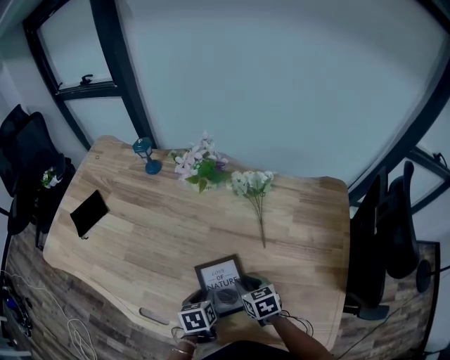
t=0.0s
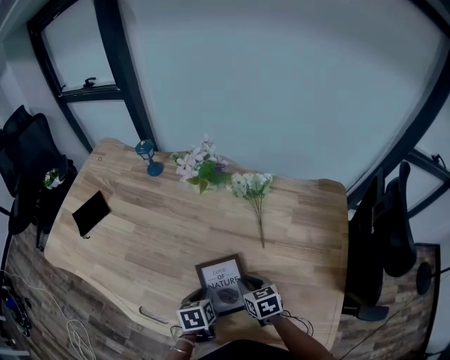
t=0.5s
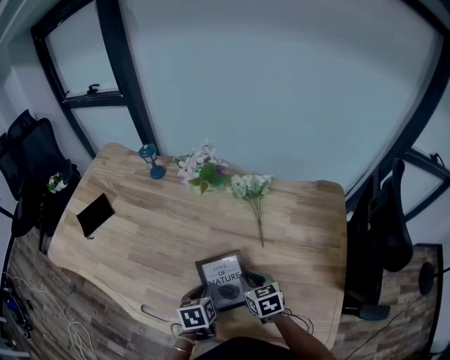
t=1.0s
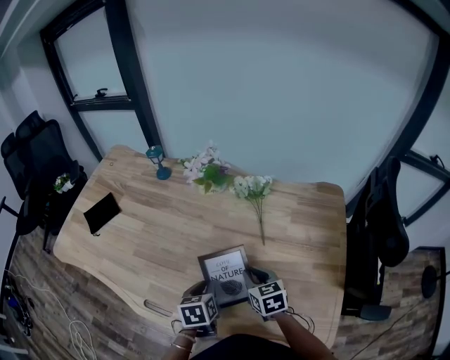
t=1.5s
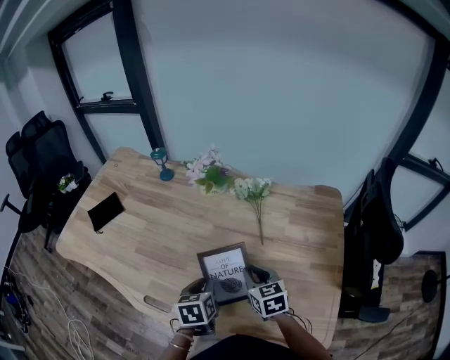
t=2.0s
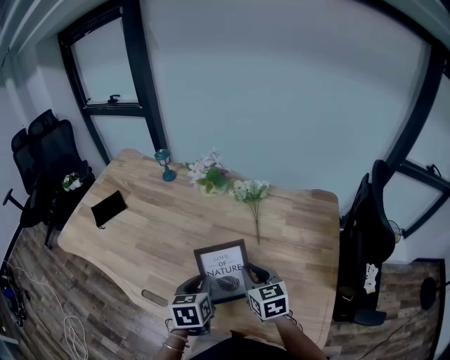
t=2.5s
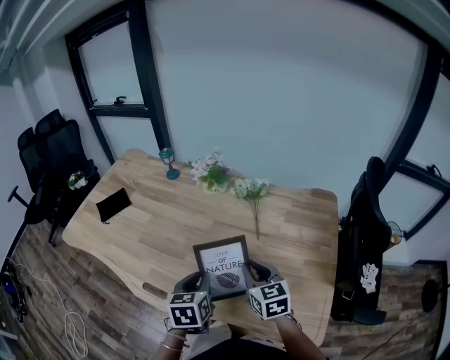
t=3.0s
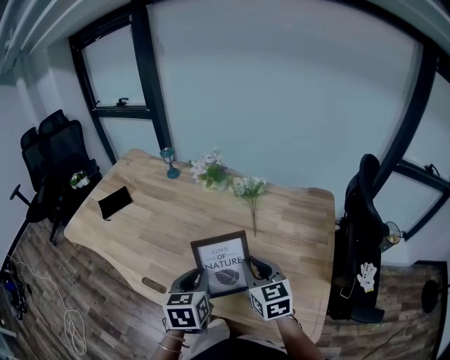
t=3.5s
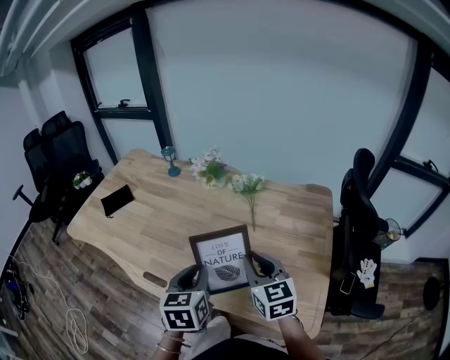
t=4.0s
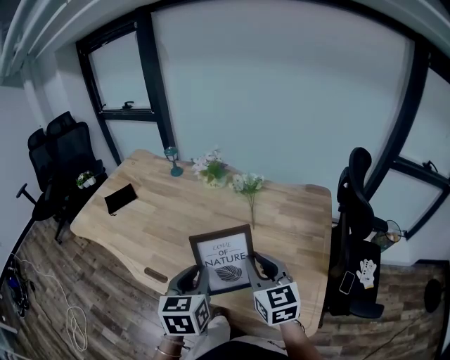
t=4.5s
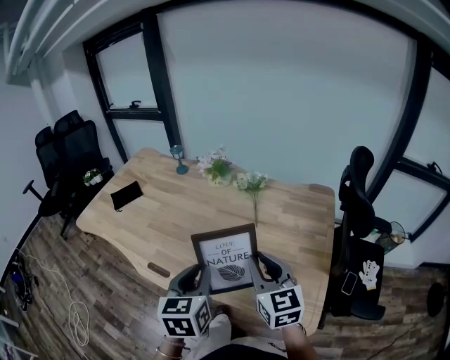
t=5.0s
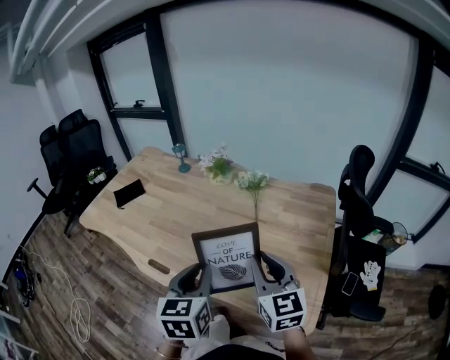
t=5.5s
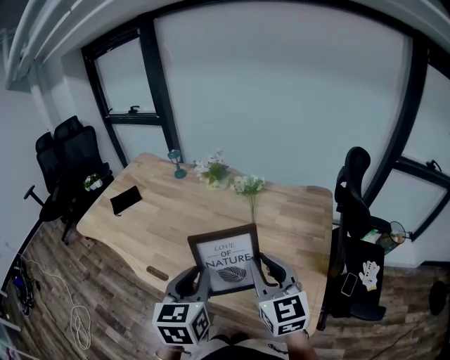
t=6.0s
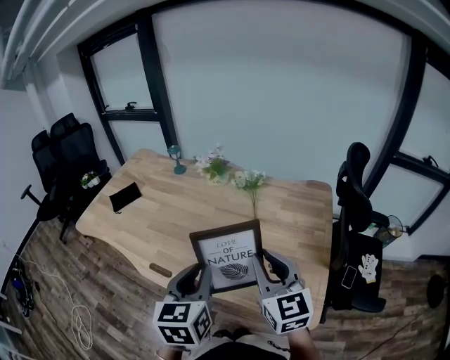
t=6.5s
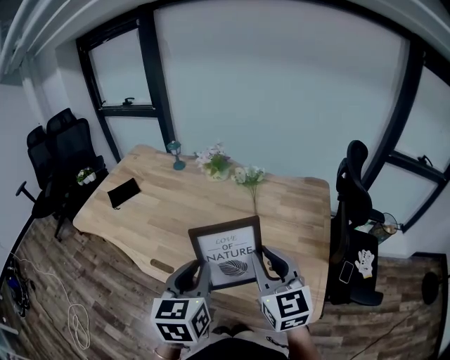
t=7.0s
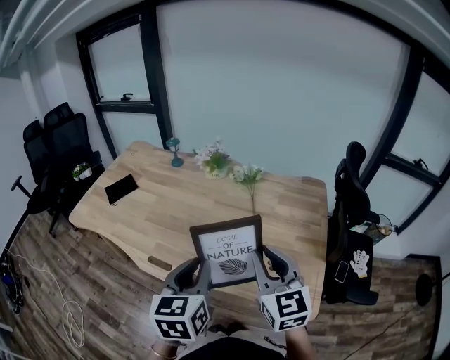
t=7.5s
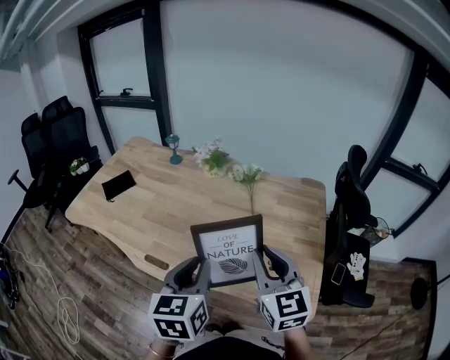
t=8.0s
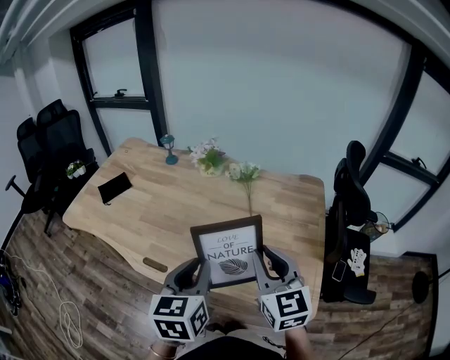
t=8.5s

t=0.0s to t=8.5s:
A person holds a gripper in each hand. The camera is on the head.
t=0.0s to t=2.0s: Both grippers move upward, roughly 10 cm.
t=2.0s to t=4.0s: Both grippers travel together upward and backward, some 15 cm.
t=4.0s to t=6.5s: The two grippers go approximately 10 cm upward and backward.
t=6.5s to t=8.5s: The grippers stay close to where they were, moving slightly.

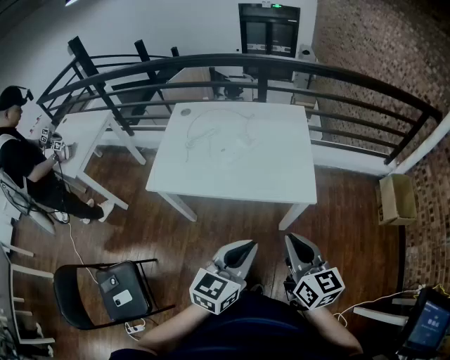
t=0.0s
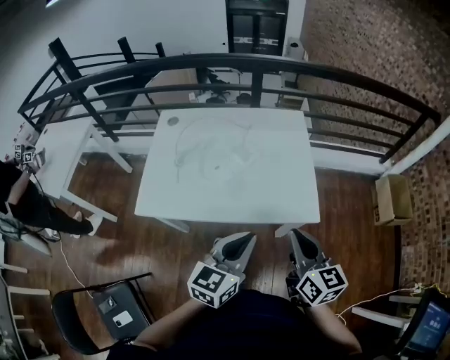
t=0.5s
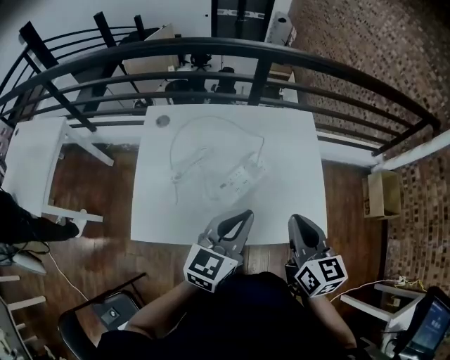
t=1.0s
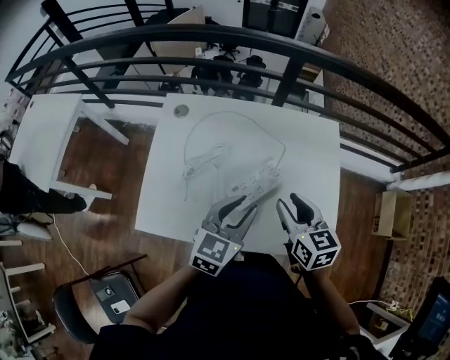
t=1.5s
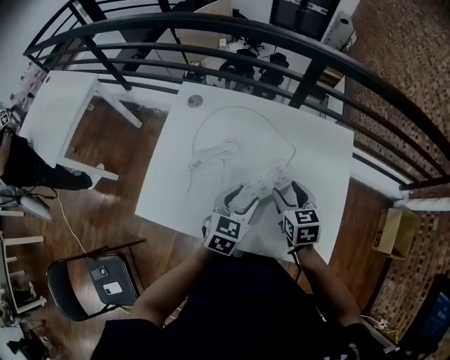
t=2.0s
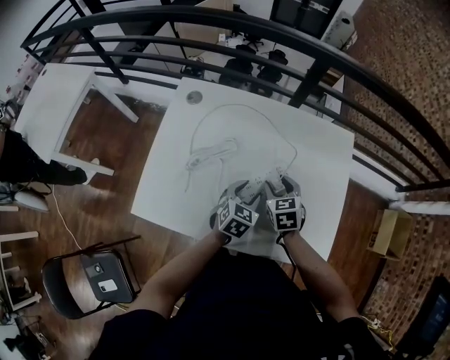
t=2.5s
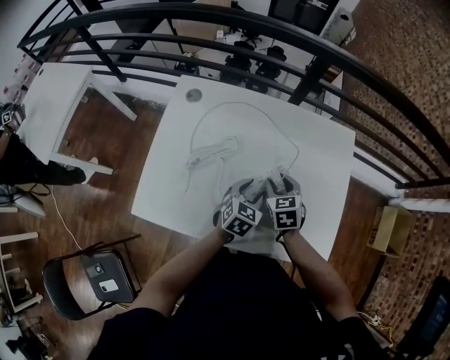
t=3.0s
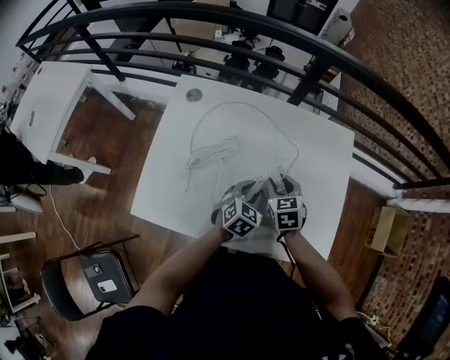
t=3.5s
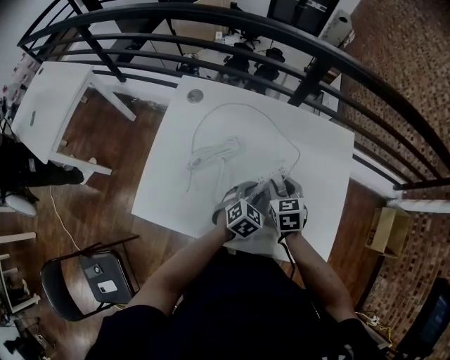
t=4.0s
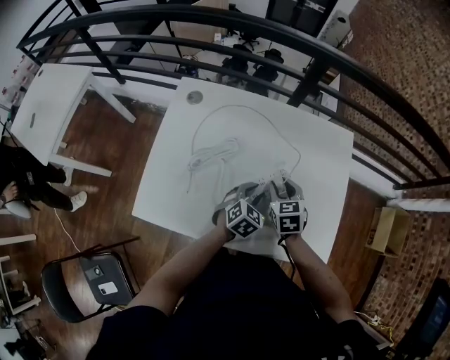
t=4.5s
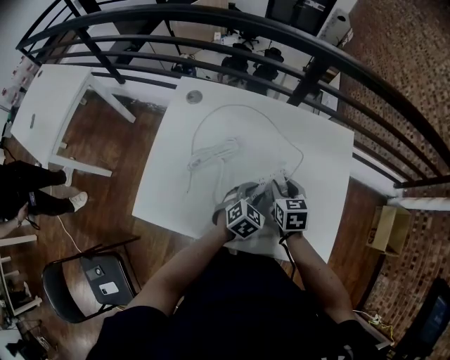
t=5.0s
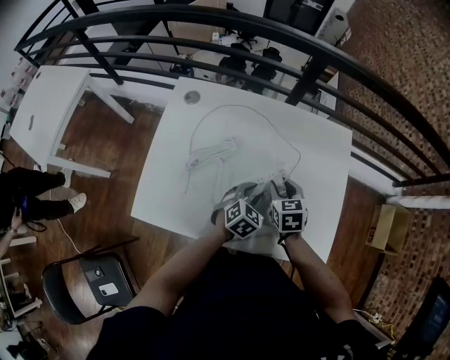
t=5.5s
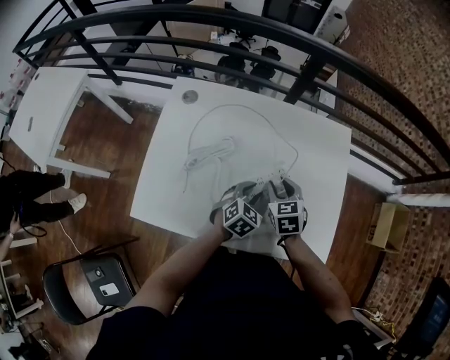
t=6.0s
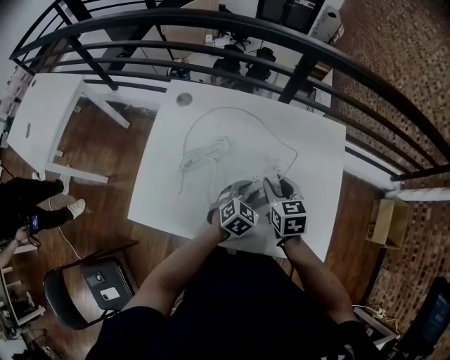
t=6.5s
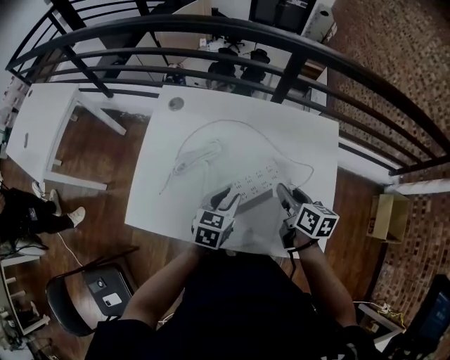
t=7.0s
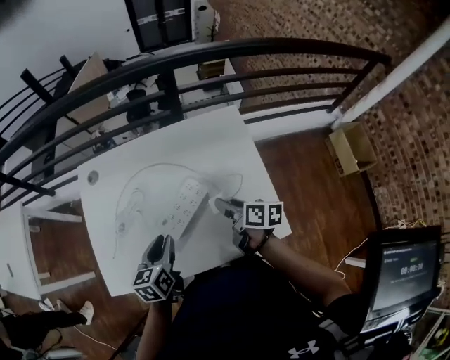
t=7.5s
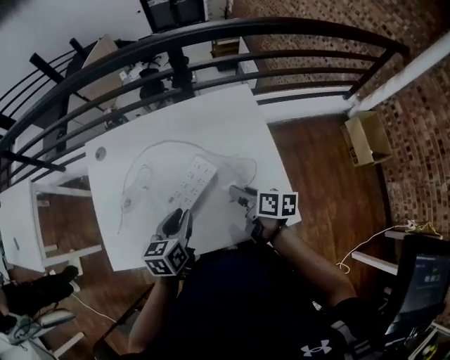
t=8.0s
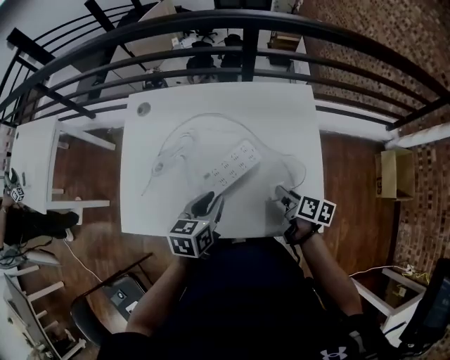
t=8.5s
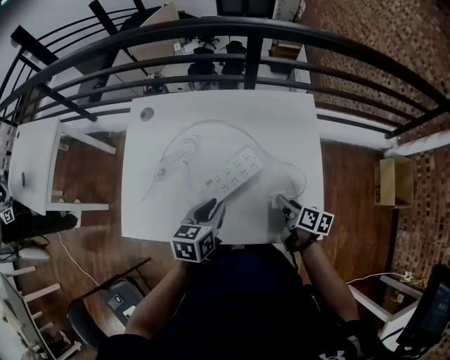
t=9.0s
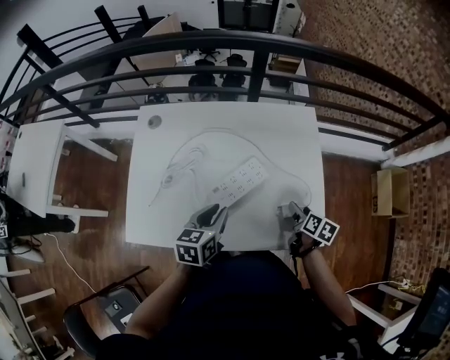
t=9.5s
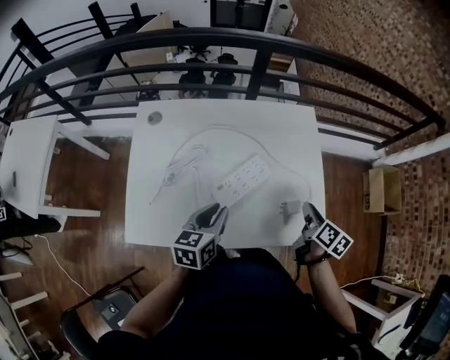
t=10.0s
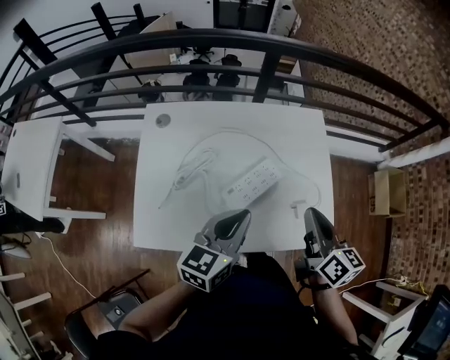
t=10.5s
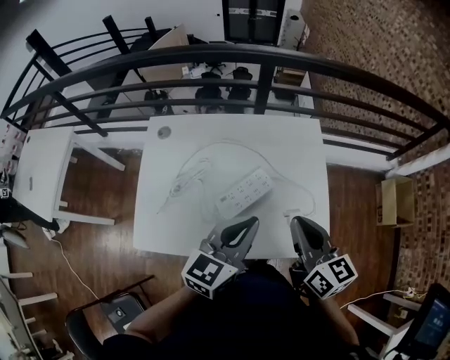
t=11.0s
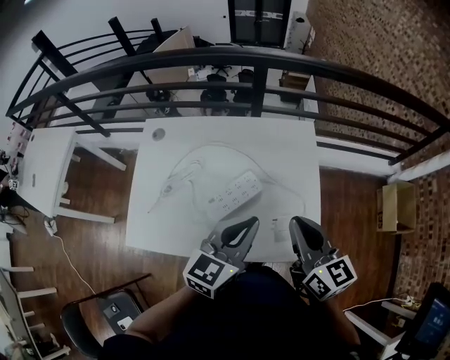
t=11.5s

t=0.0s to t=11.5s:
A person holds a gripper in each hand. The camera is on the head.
t=0.0s to t=2.0s: The two grippers go roughly 40 cm forward and downward. The right gripper turns by approximately 30 degrees, and opens its fingers. The left gripper turns by approximately 20 degrees, and opens up.
t=2.0s to t=4.0s: The right gripper shifts roughly 5 cm downward, and closes up; the left gripper travels downward by approximately 10 cm, turns by roughly 20 degrees, and closes.
t=4.0s to t=6.0s: The grippers stay close to where they were, moving slightly.
t=6.0s to t=7.5s: The right gripper heads to the right, covering some 10 cm, and rotates around the line of its fingers by roughly 60 degrees, clockwise from behind. Meanwhile the left gripper is displaced upward and to the left by some 10 cm, and swivels roughly 40 degrees.
t=7.5s to t=9.5s: The right gripper is displaced to the right, downward and backward by some 15 cm, rotates approximately 30 degrees, and opens its fingers.
t=9.5s to t=11.5s: The left gripper travels upward and to the right by roughly 20 cm, swivels roughly 30 degrees, and closes its fingers, while the right gripper travels upward by about 30 cm, tips its fingers upward by some 40 degrees, and closes its fingers.

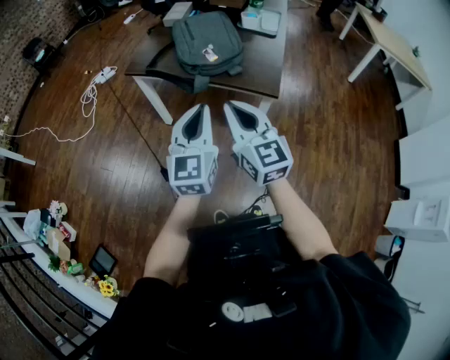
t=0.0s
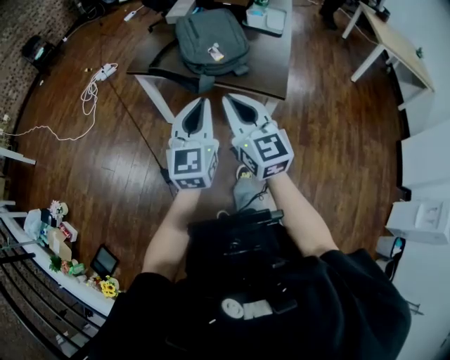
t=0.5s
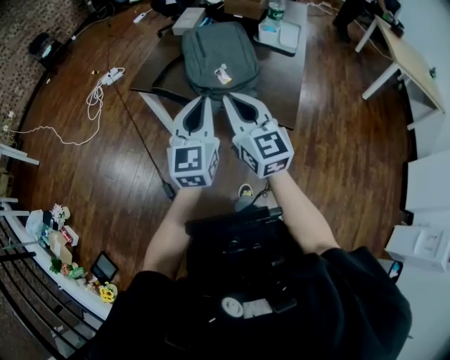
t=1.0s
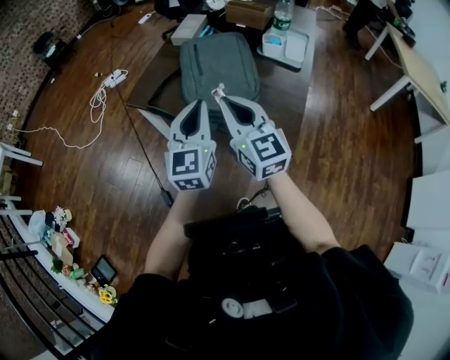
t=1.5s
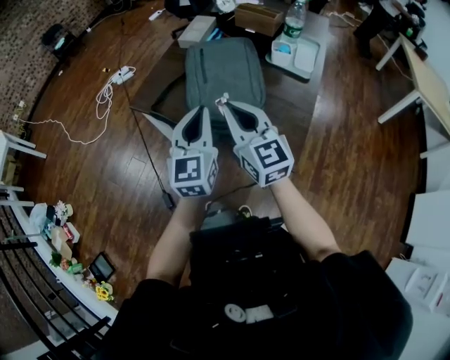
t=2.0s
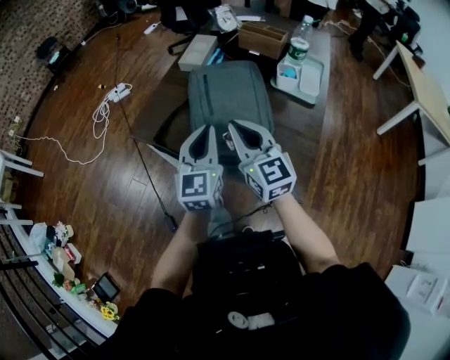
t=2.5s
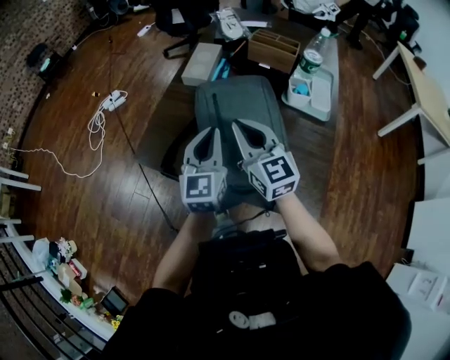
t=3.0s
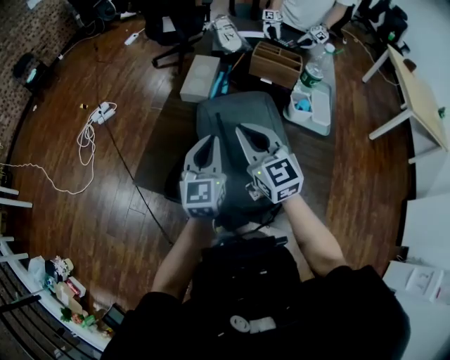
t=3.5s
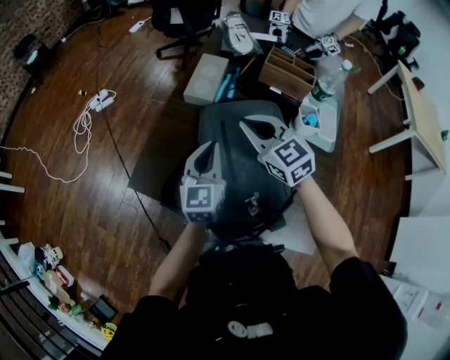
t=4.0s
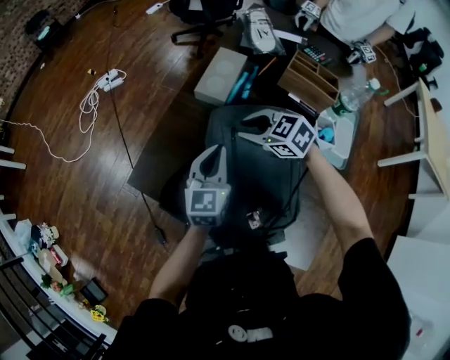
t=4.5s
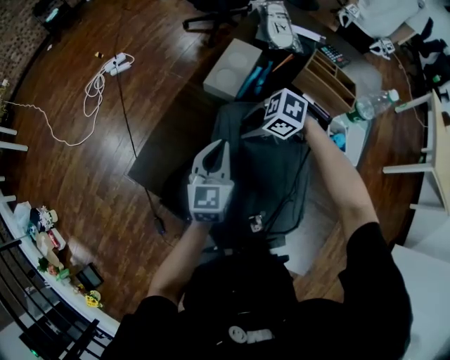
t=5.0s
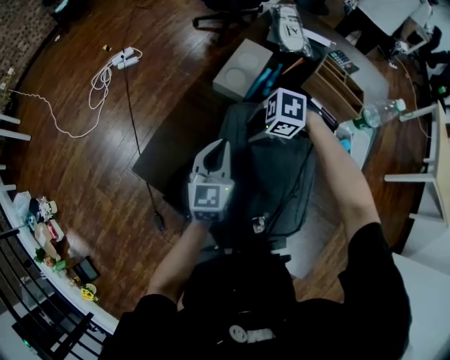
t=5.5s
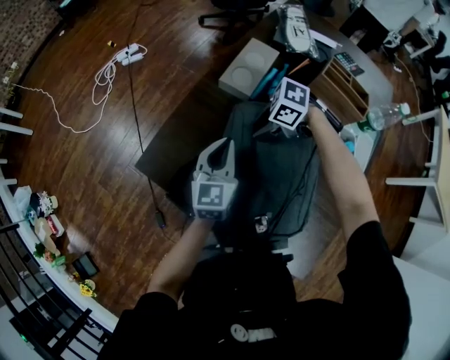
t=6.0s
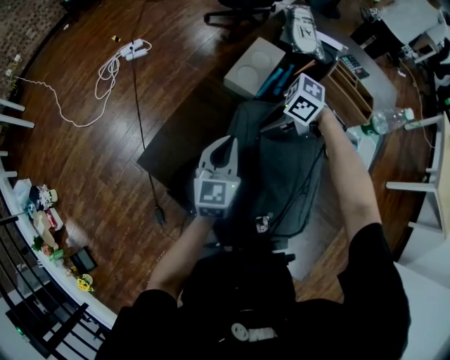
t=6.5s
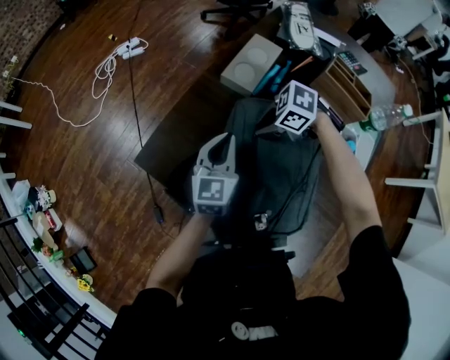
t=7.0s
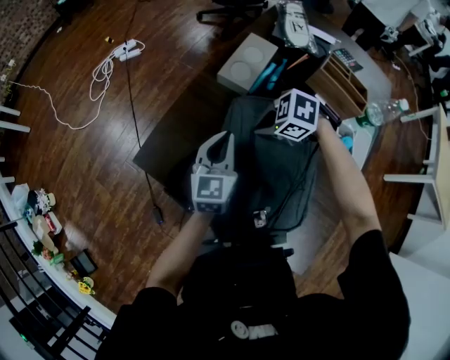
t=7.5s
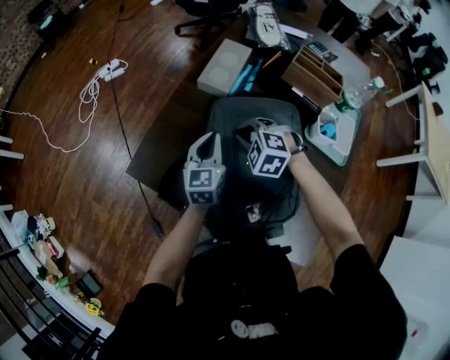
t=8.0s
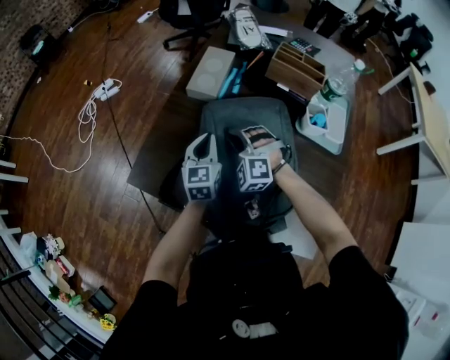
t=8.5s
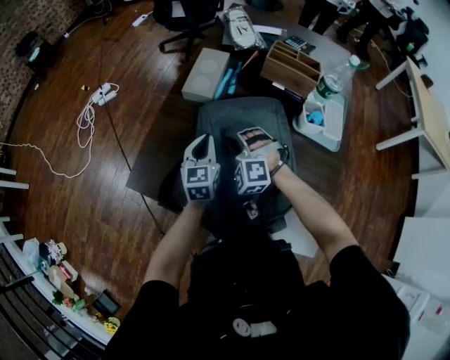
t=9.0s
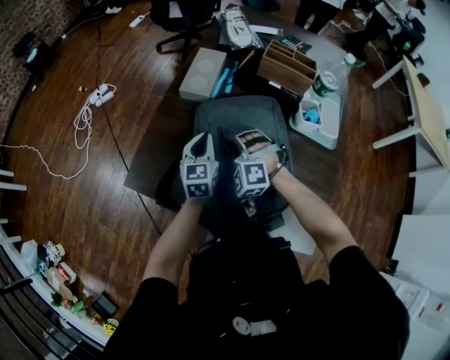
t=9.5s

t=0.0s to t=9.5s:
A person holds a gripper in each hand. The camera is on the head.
t=0.0s to t=2.0s: Both grippers travel together forward, approximately 30 cm.
t=2.0s to t=4.0s: The two grippers go about 35 cm forward. The right gripper swivels some 20 degrees.
t=4.0s to t=5.5s: The left gripper goes some 5 cm downward. Meanwhile the right gripper goes approximately 15 cm downward, points its fingers approximately 40 degrees further downward, and opens its fingers.
t=5.5s to t=7.5s: The right gripper closes its fingers.
t=7.5s to t=9.5s: The right gripper changes its angle by approximately 70 degrees.
